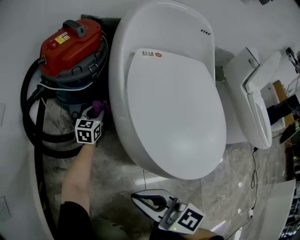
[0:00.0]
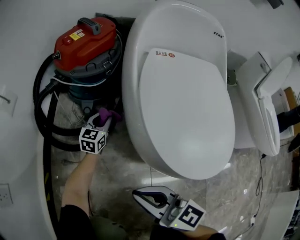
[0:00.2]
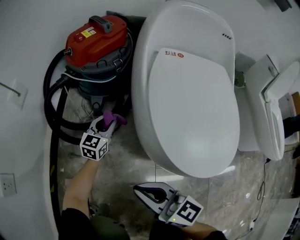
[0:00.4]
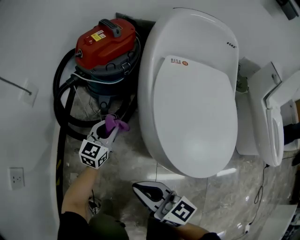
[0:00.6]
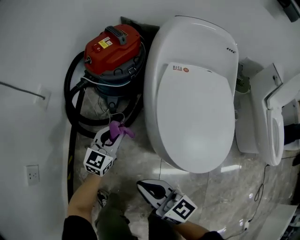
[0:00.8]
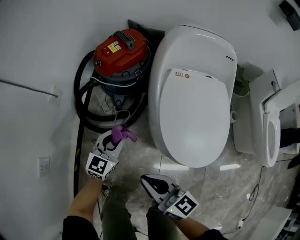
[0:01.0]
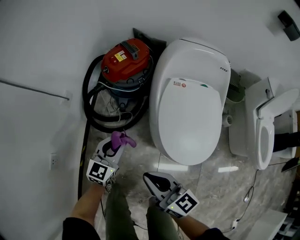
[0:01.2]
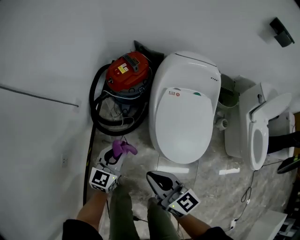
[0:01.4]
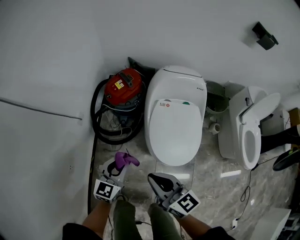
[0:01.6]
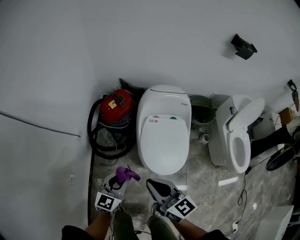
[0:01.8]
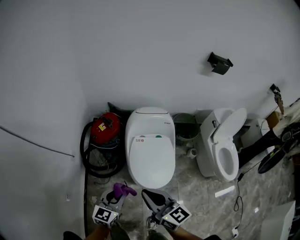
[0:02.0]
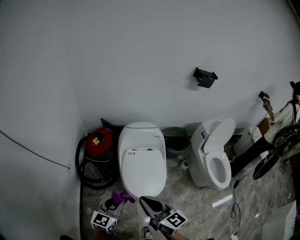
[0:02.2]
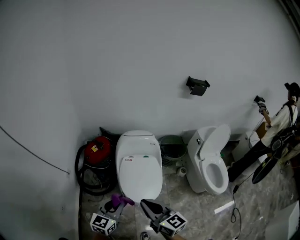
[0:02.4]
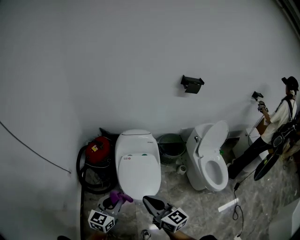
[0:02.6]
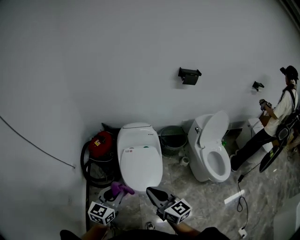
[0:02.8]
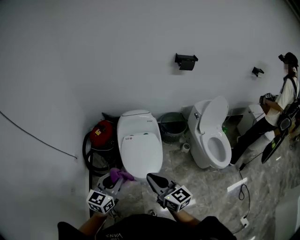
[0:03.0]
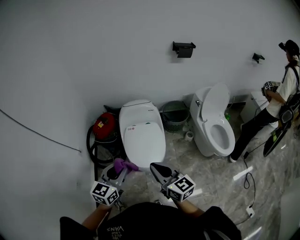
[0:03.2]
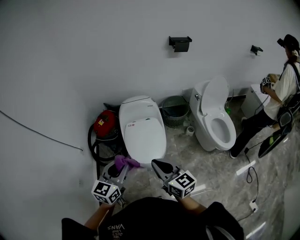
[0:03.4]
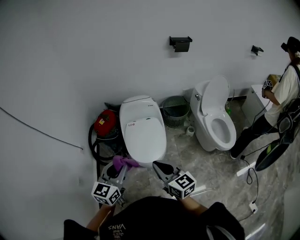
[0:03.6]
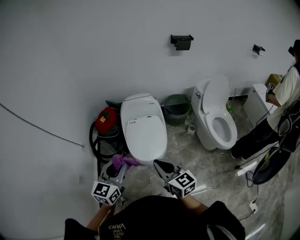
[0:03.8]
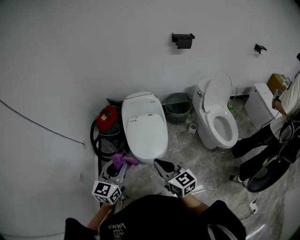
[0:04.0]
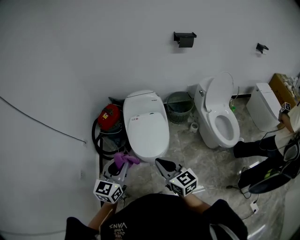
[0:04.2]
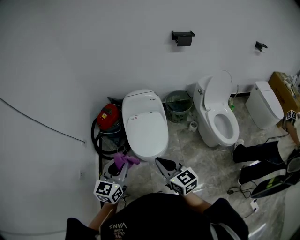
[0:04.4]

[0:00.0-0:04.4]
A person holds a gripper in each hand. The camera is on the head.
0:00.0 to 0:01.4: The right gripper is displaced upward by roughly 30 cm, while the left gripper goes about 50 cm upward and backward.
0:01.4 to 0:03.0: The right gripper shifts about 35 cm upward and to the right, and swivels some 20 degrees. Meanwhile the left gripper goes approximately 40 cm upward, to the right and backward.
0:03.0 to 0:04.4: Both grippers travel together backward, approximately 5 cm.

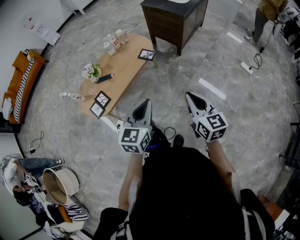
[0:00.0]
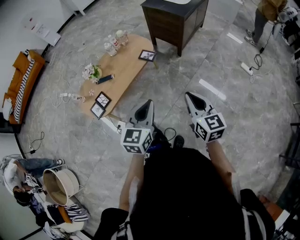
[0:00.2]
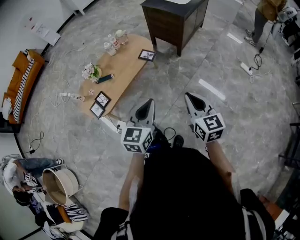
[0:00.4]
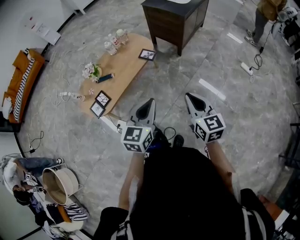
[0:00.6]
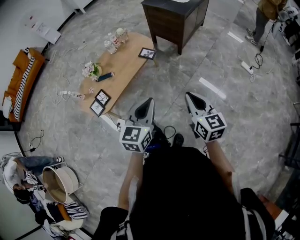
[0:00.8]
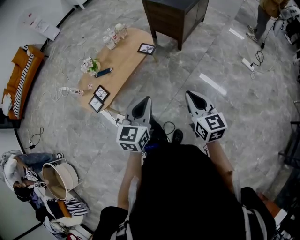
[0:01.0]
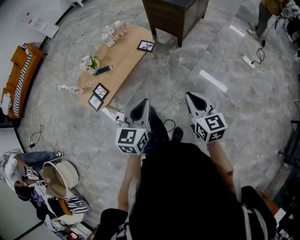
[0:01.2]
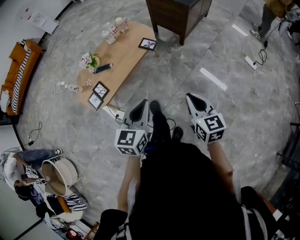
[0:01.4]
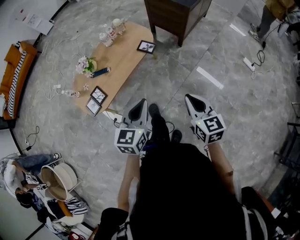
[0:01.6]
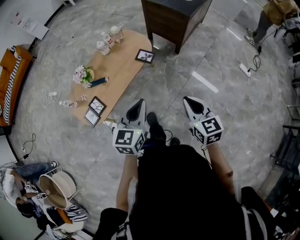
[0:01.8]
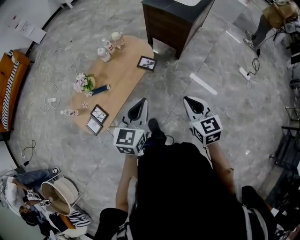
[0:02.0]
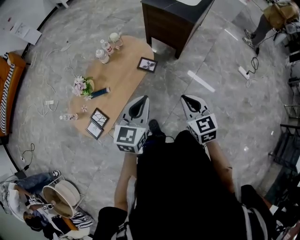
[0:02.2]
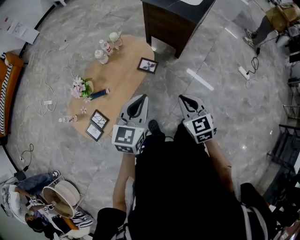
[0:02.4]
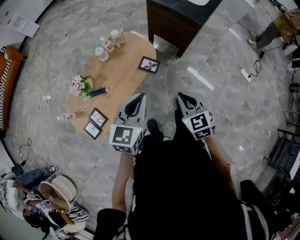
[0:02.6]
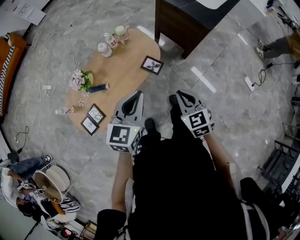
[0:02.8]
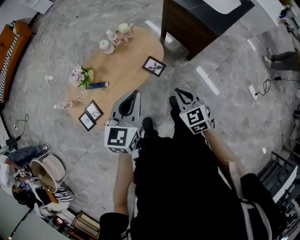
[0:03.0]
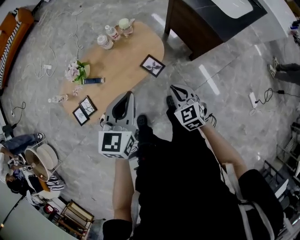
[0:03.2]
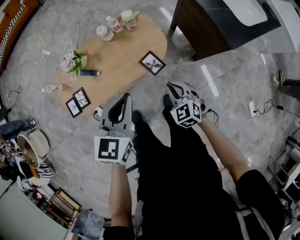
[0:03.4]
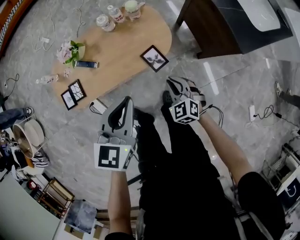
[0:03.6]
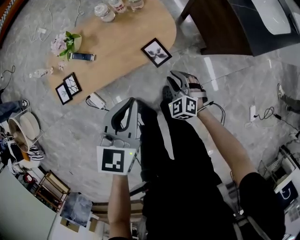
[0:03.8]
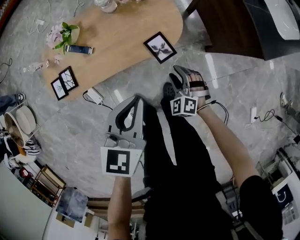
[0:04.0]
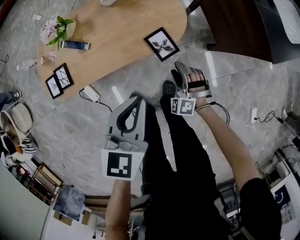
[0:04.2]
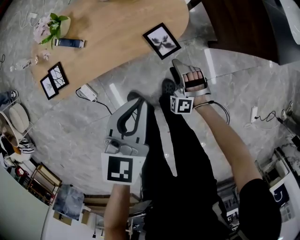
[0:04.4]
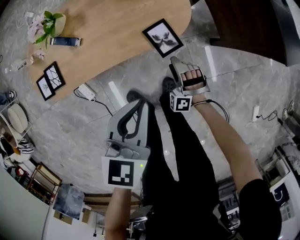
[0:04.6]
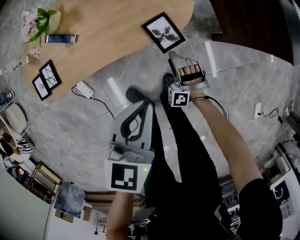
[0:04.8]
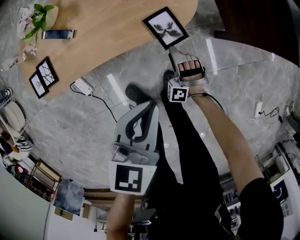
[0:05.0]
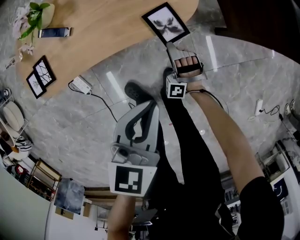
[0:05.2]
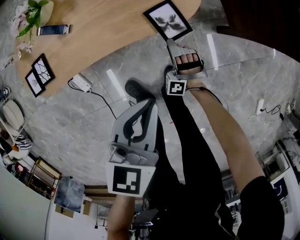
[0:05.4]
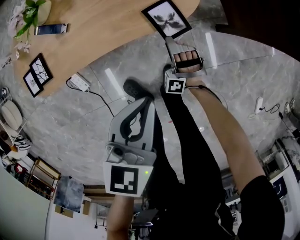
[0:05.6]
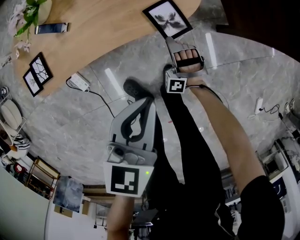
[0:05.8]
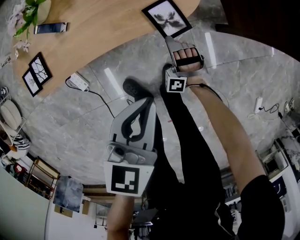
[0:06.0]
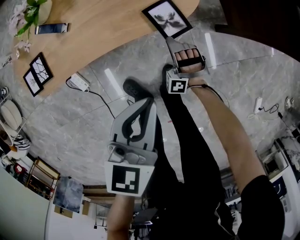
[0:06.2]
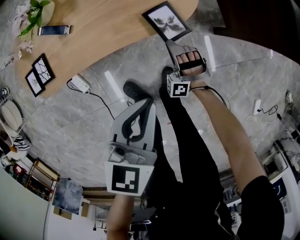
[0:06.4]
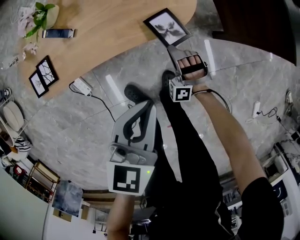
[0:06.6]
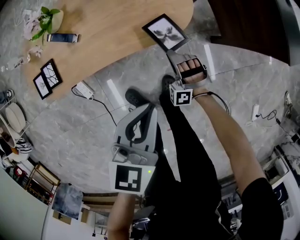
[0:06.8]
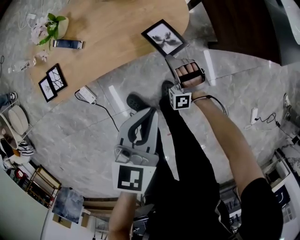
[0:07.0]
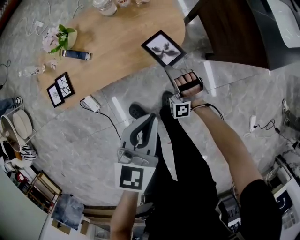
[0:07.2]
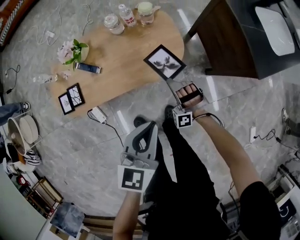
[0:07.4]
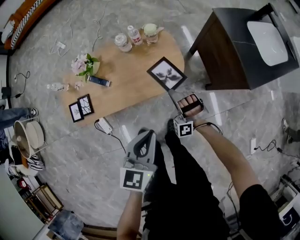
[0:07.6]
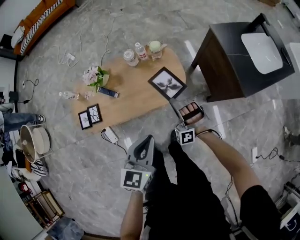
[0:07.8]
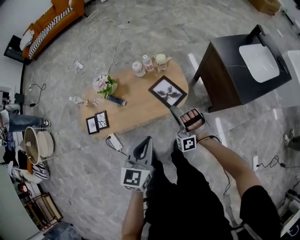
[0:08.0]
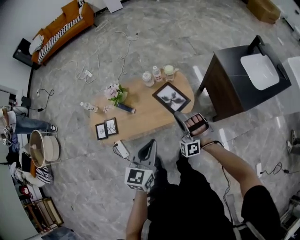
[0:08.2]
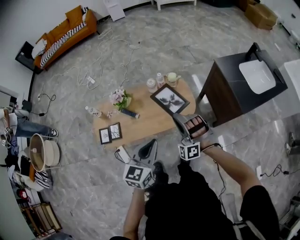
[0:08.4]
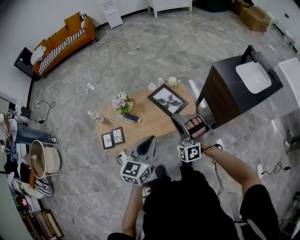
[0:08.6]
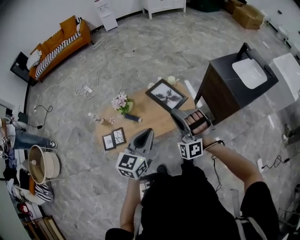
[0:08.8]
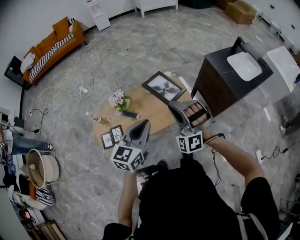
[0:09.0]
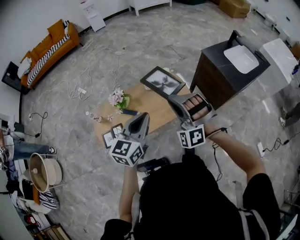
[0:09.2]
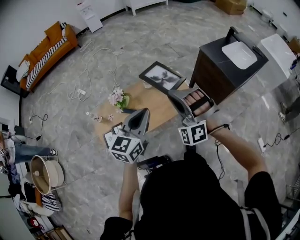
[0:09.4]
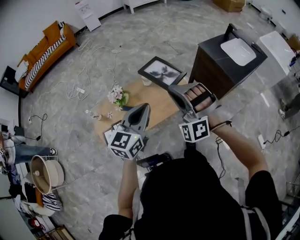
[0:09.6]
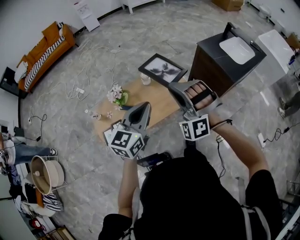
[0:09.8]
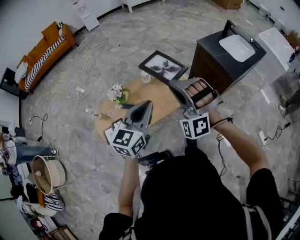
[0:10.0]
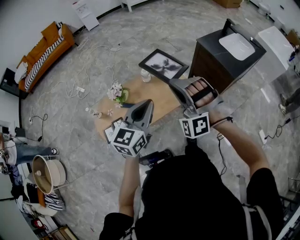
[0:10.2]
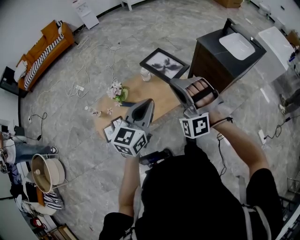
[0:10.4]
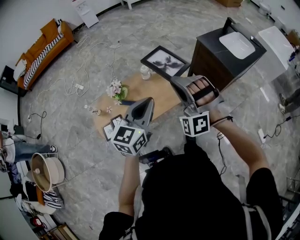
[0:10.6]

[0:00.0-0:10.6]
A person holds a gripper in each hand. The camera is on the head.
0:00.0 to 0:01.6: Both grippers move forward, approximately 5 cm.
0:01.6 to 0:03.0: Both grippers move forward, some 35 cm. The right gripper rotates approximately 30 degrees.
0:03.0 to 0:04.6: The left gripper moves downward, about 25 cm, and swivels approximately 30 degrees; the right gripper heads downward, covering approximately 40 cm, twists approximately 80 degrees counterclockwise, seen from behind, and opens up.
0:04.6 to 0:06.0: The grippers both shift downward by approximately 5 cm. The right gripper closes its fingers.
0:06.0 to 0:07.6: Both grippers travel together upward, some 25 cm.
0:07.6 to 0:09.0: The left gripper travels to the left and upward by approximately 30 cm; the right gripper moves upward and to the left, some 40 cm.
0:09.0 to 0:10.6: The right gripper heads upward, covering approximately 5 cm.

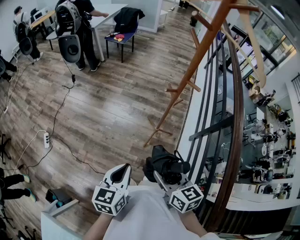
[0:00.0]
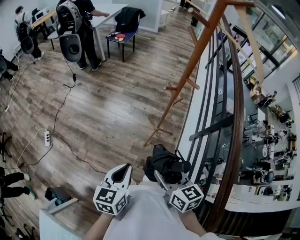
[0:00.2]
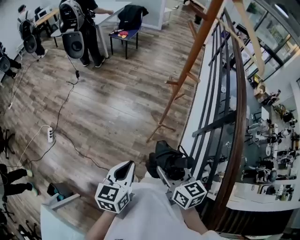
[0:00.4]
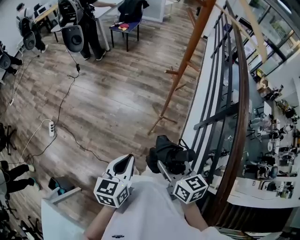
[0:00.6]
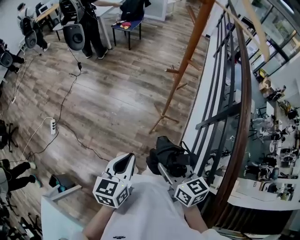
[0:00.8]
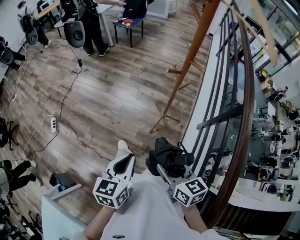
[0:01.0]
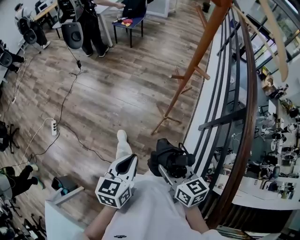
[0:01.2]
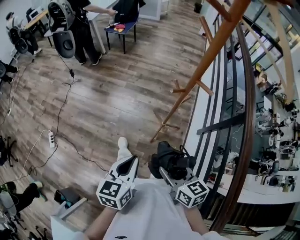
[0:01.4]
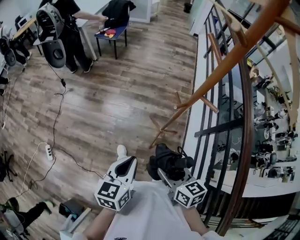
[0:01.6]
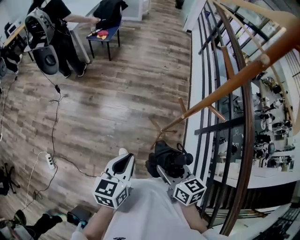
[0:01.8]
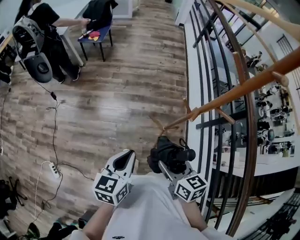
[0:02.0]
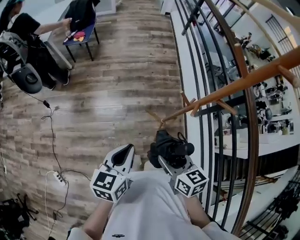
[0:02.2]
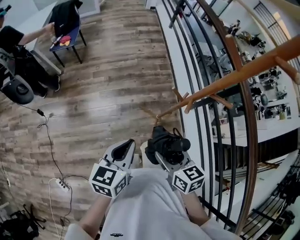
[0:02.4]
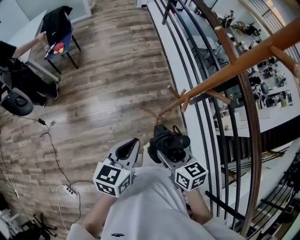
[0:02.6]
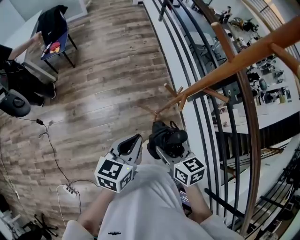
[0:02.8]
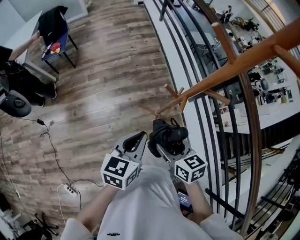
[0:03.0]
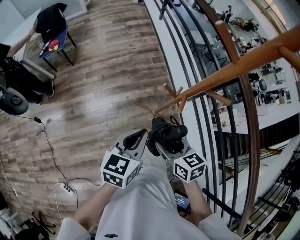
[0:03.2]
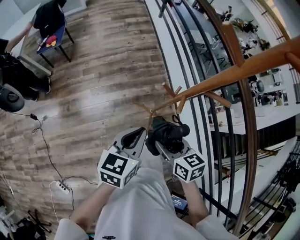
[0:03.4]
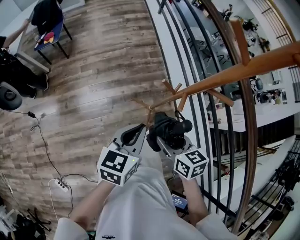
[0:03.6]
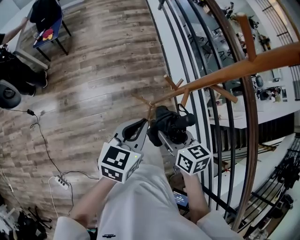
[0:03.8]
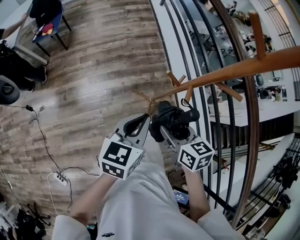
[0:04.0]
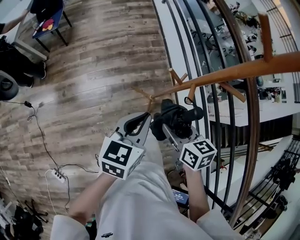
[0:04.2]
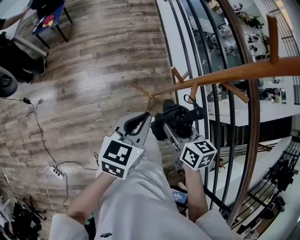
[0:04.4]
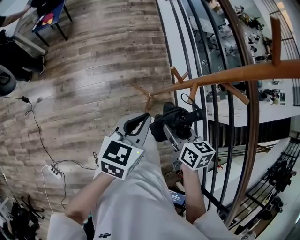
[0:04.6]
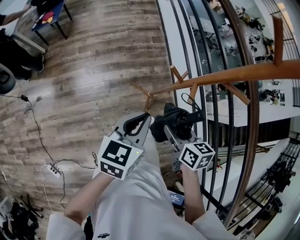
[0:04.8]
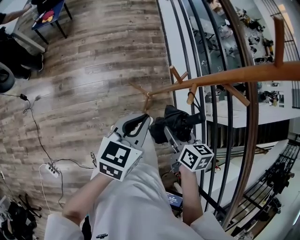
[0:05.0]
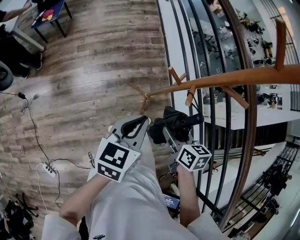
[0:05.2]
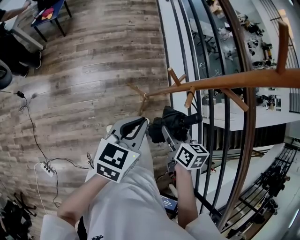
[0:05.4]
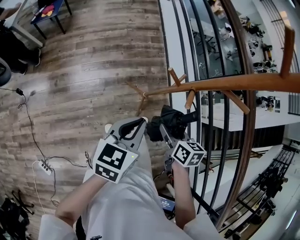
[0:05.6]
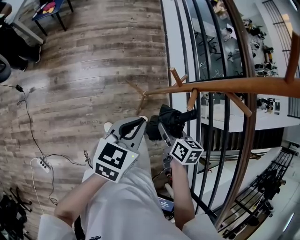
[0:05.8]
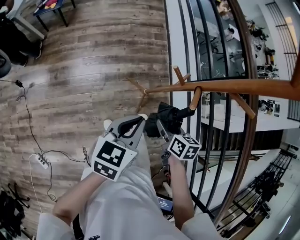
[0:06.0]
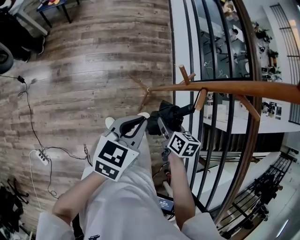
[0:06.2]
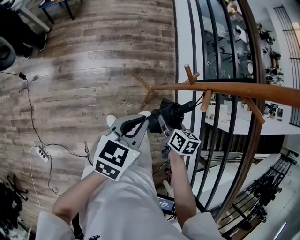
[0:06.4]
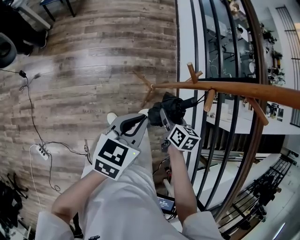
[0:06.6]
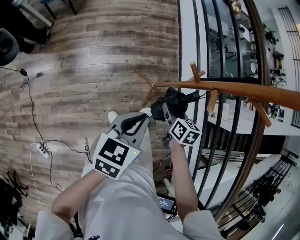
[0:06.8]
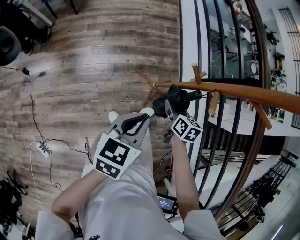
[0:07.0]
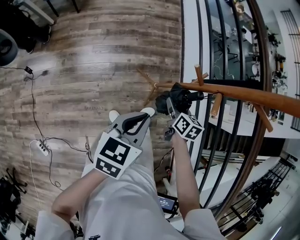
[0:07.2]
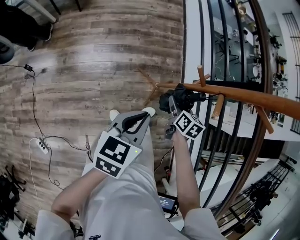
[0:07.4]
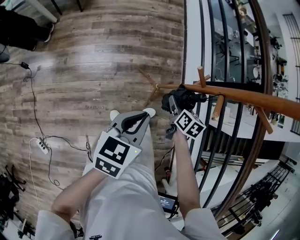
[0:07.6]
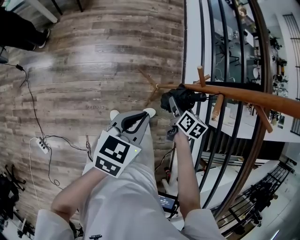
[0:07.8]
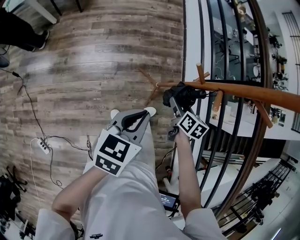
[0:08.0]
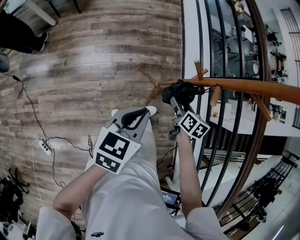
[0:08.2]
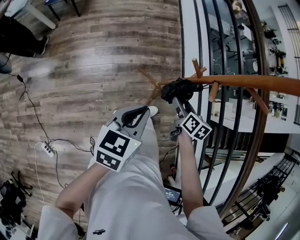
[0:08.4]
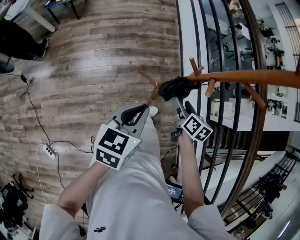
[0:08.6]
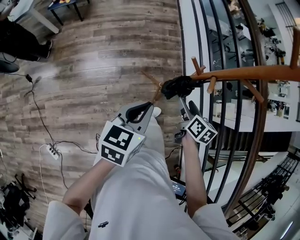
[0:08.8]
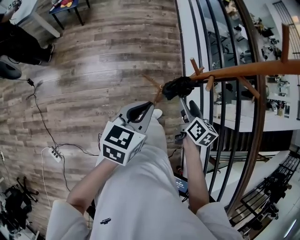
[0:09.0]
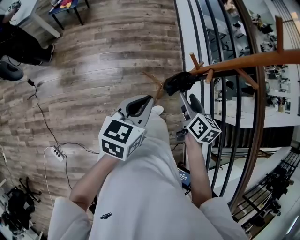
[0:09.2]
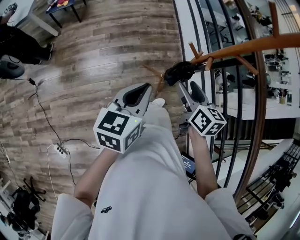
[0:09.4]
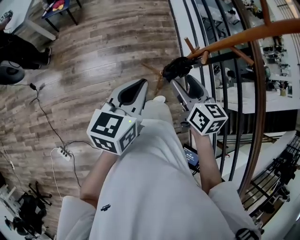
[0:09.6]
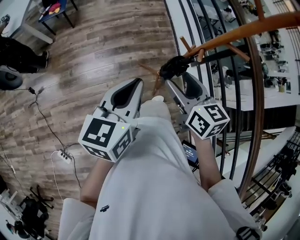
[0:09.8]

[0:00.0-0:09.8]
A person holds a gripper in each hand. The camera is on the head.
0:00.0 to 0:01.4: The two grippers go about 10 cm forward.
0:01.4 to 0:02.8: The left gripper changes place by some 25 cm, and changes its angle by about 40 degrees. The right gripper ends up approximately 25 cm from where it was, and turns by some 30 degrees.
0:02.8 to 0:04.2: The two grippers go roughly 10 cm forward.
0:04.2 to 0:05.6: The right gripper goes approximately 10 cm downward.
0:05.6 to 0:07.0: The left gripper shifts about 5 cm downward; the right gripper heads downward and forward, covering roughly 15 cm.
0:07.0 to 0:08.4: The grippers move only a little.
0:08.4 to 0:09.8: The left gripper moves upward, roughly 15 cm; the right gripper is displaced upward and to the left by approximately 30 cm, and turns by roughly 30 degrees.
